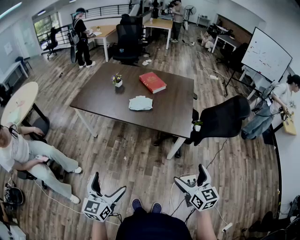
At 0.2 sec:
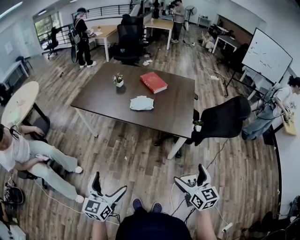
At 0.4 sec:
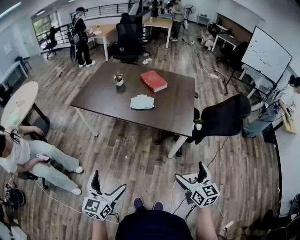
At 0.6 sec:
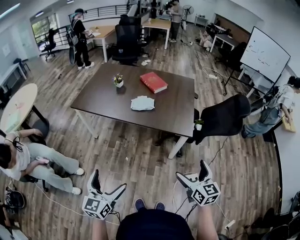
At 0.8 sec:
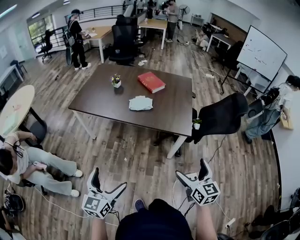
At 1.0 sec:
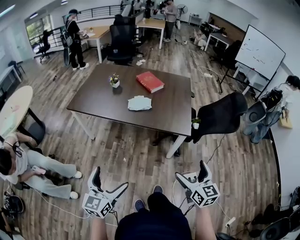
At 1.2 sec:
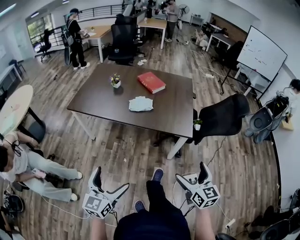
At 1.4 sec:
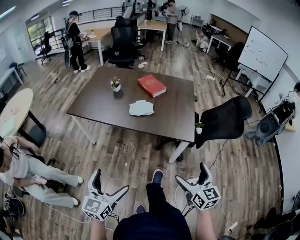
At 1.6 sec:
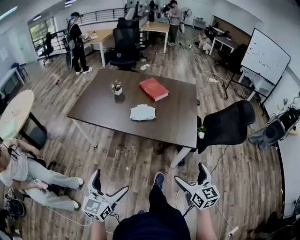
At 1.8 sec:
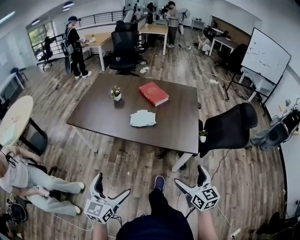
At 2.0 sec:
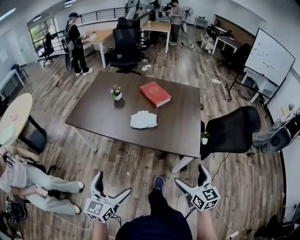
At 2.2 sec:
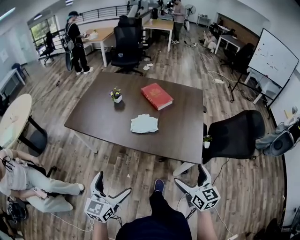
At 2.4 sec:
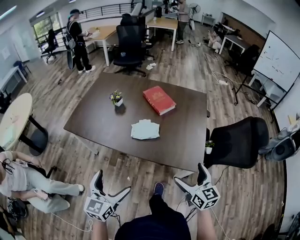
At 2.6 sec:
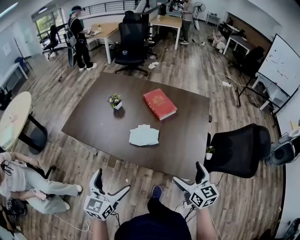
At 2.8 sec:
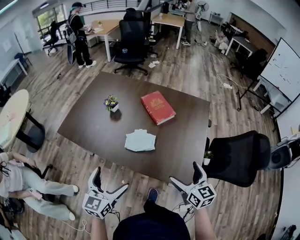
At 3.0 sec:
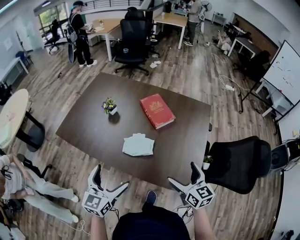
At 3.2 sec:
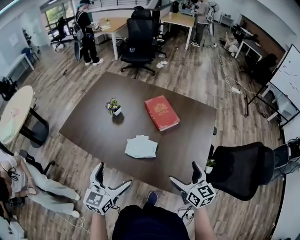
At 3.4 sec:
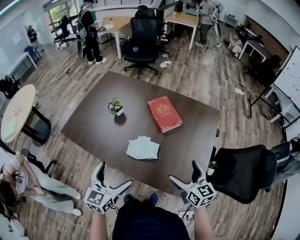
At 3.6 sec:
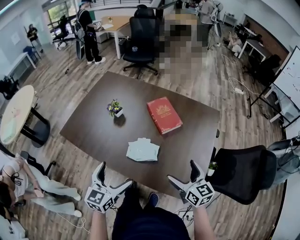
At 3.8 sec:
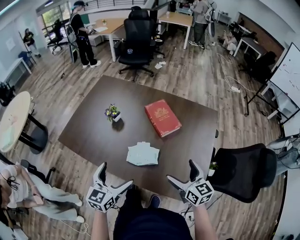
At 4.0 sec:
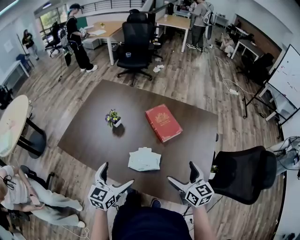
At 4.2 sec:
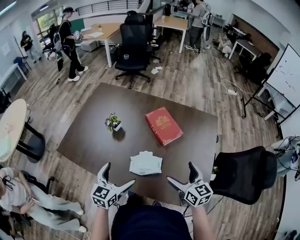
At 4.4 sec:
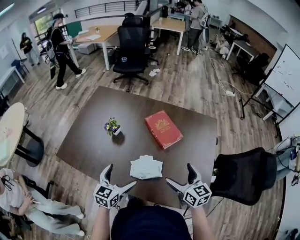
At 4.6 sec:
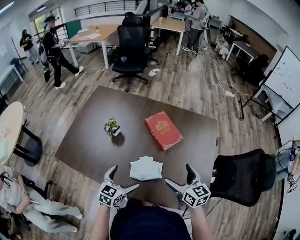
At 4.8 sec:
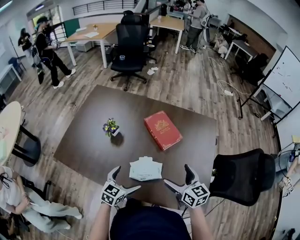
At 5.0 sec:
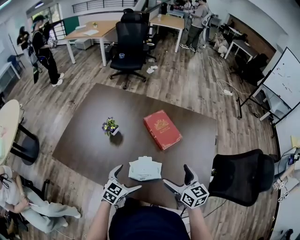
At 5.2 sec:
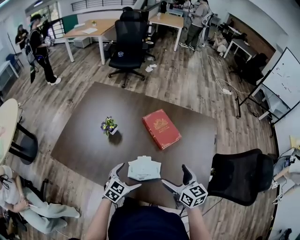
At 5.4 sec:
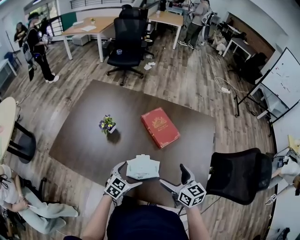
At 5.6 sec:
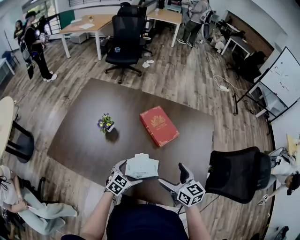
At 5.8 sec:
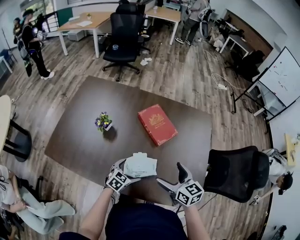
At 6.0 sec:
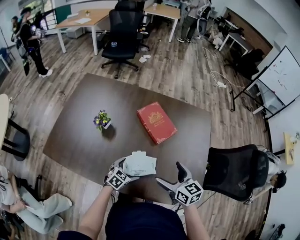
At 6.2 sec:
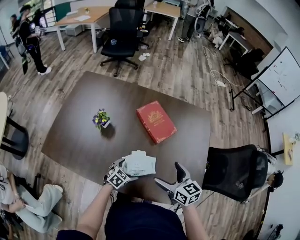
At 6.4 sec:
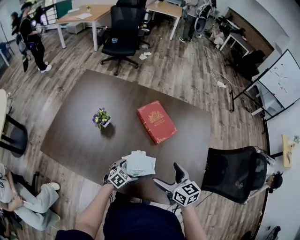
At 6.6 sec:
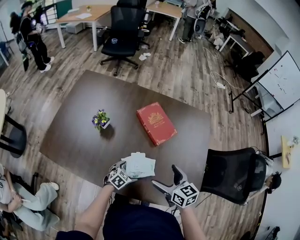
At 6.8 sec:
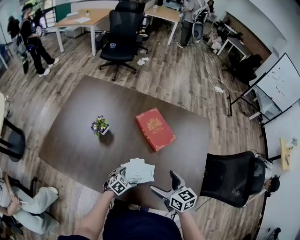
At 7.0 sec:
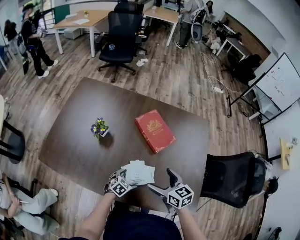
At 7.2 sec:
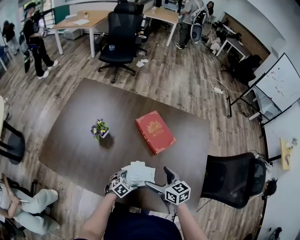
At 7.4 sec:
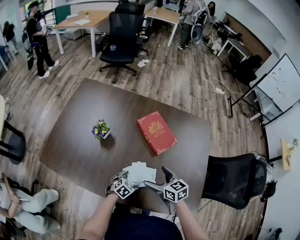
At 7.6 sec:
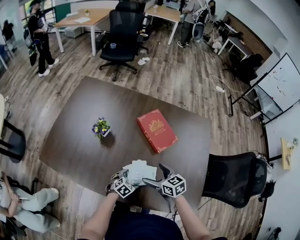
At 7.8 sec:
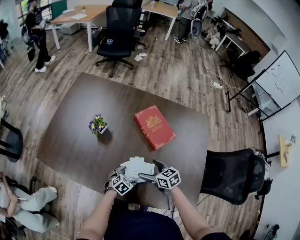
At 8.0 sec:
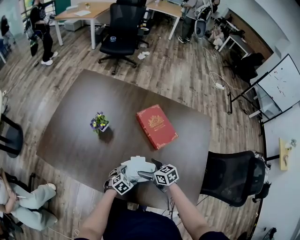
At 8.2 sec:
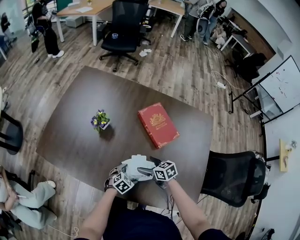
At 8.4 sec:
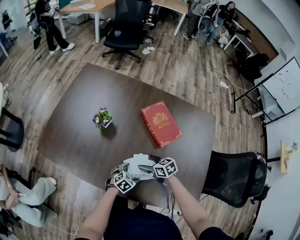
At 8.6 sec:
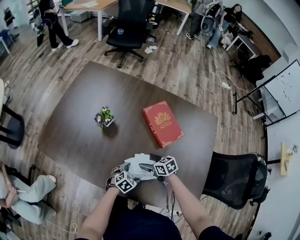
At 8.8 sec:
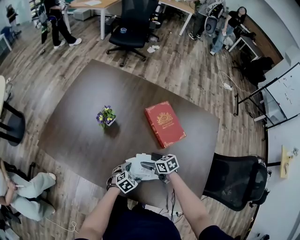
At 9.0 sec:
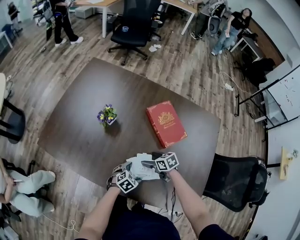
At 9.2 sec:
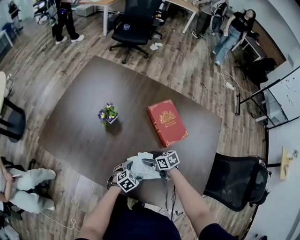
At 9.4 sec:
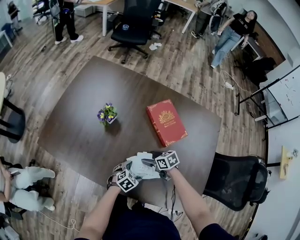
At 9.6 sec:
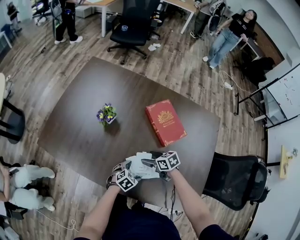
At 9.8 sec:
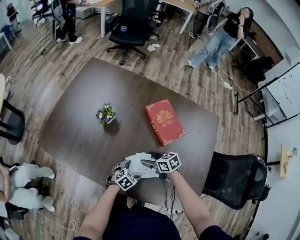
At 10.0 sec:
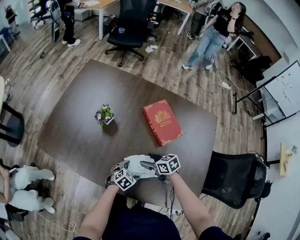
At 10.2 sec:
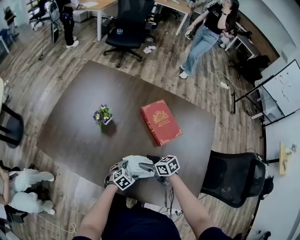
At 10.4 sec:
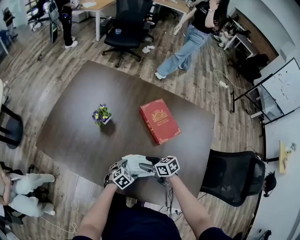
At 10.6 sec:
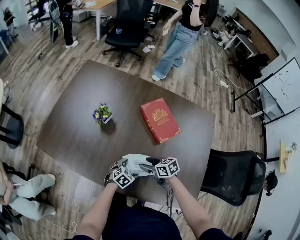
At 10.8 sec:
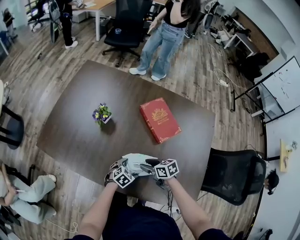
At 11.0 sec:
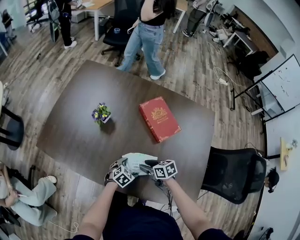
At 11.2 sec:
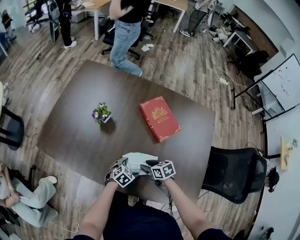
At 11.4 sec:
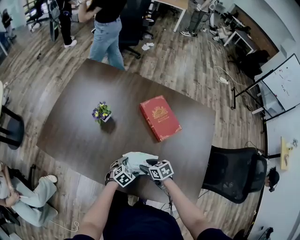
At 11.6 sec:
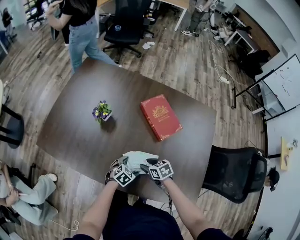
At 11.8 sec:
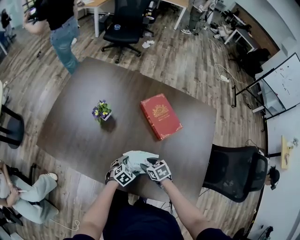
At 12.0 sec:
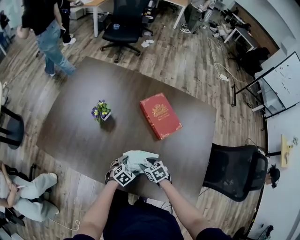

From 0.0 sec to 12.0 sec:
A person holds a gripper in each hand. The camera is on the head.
From 0.0 sec to 1.6 sec: The grippers both shift forward by roughly 10 cm.
From 1.6 sec to 3.0 sec: The two grippers go roughly 40 cm forward.
From 3.0 sec to 4.4 sec: The right gripper moves forward and to the left, some 15 cm. Meanwhile the left gripper shifts roughly 20 cm forward and downward.
From 4.4 sec to 6.0 sec: The right gripper moves about 5 cm. The left gripper shifts some 20 cm downward, and turns by some 30 degrees.
From 6.0 sec to 7.6 sec: The left gripper travels downward by approximately 10 cm, while the right gripper is displaced downward and to the left by about 15 cm.
From 7.6 sec to 9.0 sec: The right gripper heads downward, covering roughly 15 cm, and turns by roughly 20 degrees.
From 9.0 sec to 10.4 sec: The right gripper is displaced upward by roughly 5 cm.
From 10.4 sec to 12.0 sec: The right gripper is displaced downward by approximately 5 cm, and turns by some 20 degrees.

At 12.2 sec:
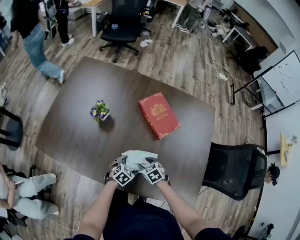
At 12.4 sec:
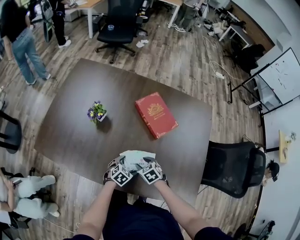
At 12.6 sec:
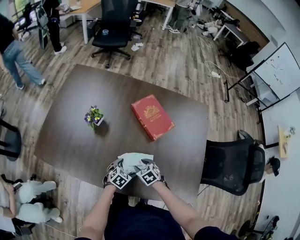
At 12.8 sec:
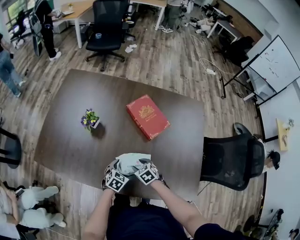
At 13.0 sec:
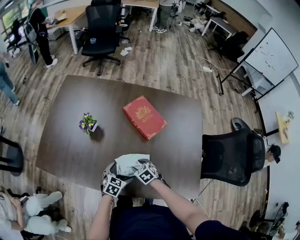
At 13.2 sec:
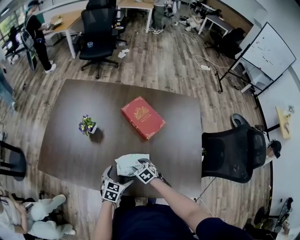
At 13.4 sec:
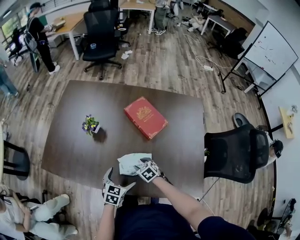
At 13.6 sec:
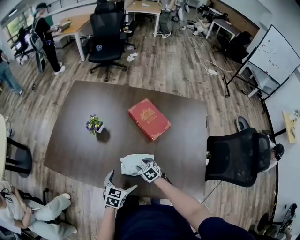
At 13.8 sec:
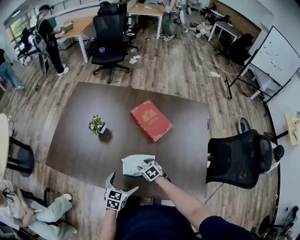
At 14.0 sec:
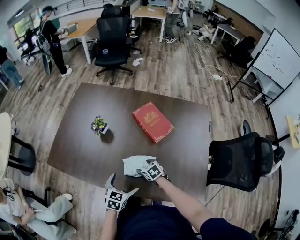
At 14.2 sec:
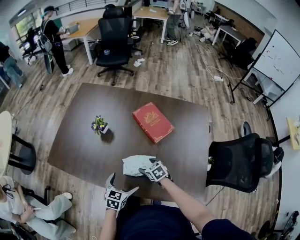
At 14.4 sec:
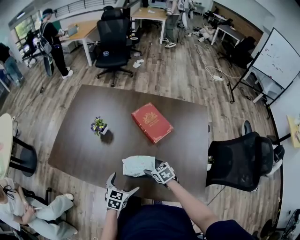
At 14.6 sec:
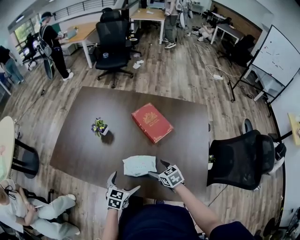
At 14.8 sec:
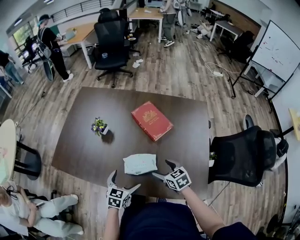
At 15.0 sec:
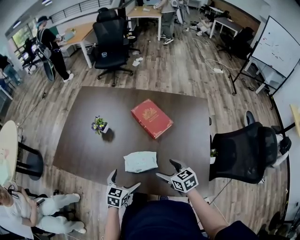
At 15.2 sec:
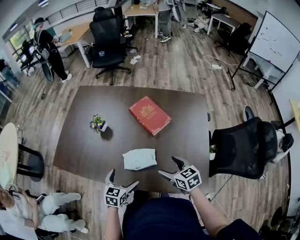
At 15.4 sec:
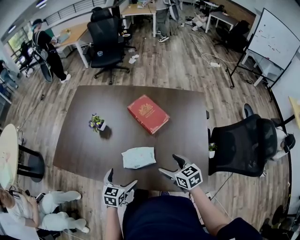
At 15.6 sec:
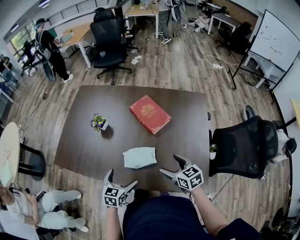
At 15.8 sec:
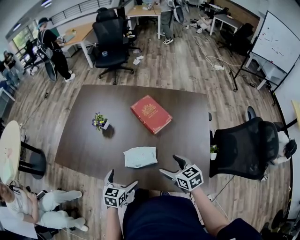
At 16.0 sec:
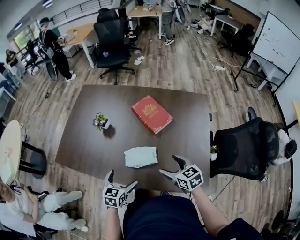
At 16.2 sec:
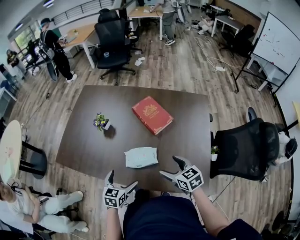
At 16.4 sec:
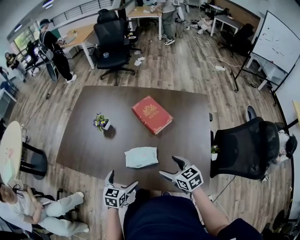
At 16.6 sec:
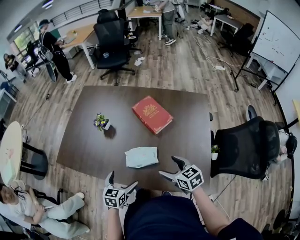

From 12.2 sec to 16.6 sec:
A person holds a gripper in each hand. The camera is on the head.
From 12.2 sec to 13.6 sec: The left gripper travels upward by about 15 cm, and rotates some 20 degrees.
From 13.6 sec to 15.2 sec: The left gripper moves approximately 5 cm; the right gripper heads upward, to the right and backward, covering approximately 25 cm, and rotates roughly 30 degrees.
From 15.2 sec to 16.6 sec: The grippers move only a little.

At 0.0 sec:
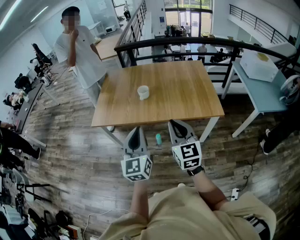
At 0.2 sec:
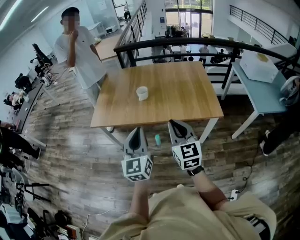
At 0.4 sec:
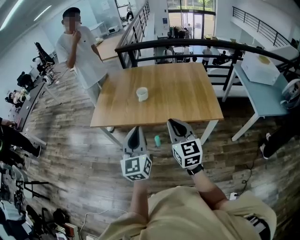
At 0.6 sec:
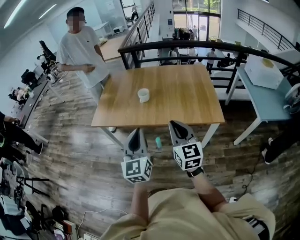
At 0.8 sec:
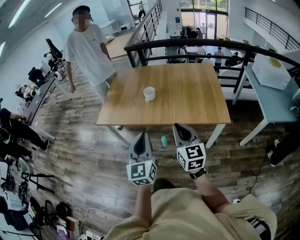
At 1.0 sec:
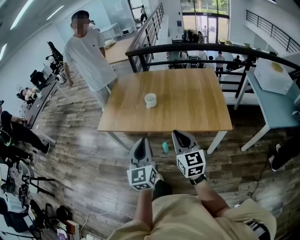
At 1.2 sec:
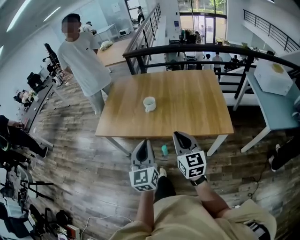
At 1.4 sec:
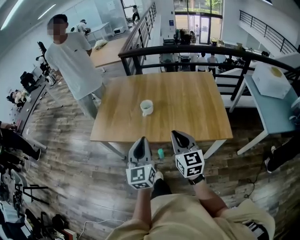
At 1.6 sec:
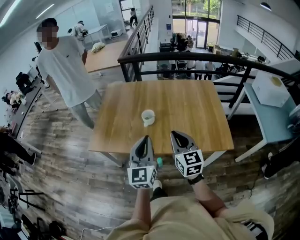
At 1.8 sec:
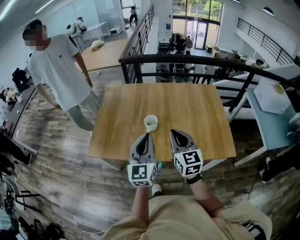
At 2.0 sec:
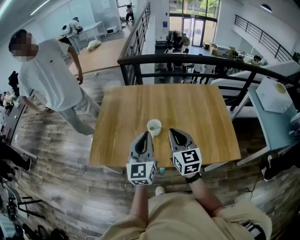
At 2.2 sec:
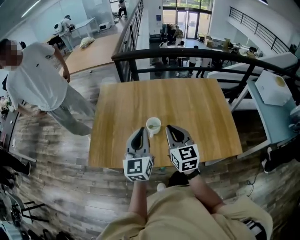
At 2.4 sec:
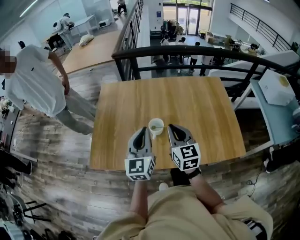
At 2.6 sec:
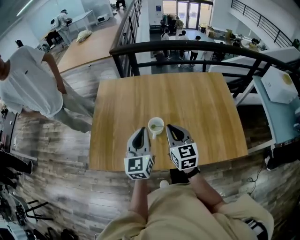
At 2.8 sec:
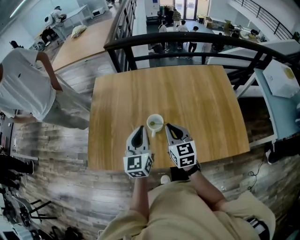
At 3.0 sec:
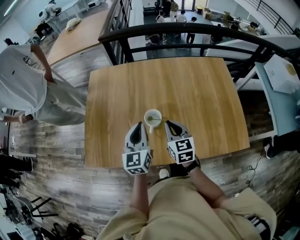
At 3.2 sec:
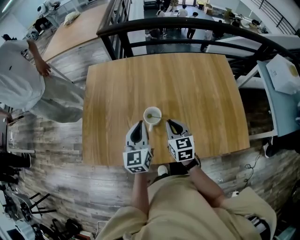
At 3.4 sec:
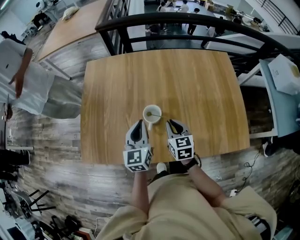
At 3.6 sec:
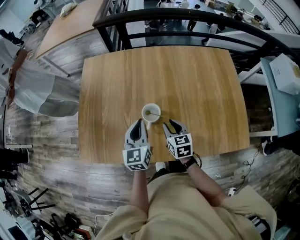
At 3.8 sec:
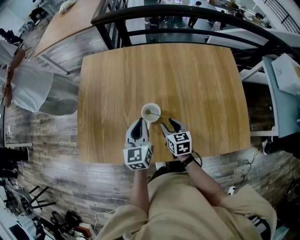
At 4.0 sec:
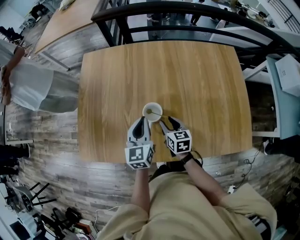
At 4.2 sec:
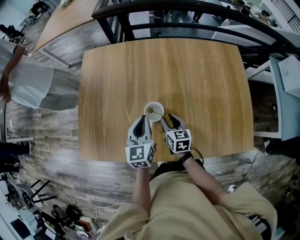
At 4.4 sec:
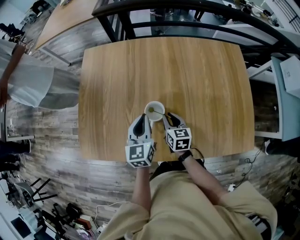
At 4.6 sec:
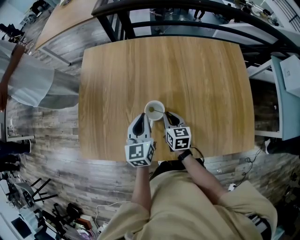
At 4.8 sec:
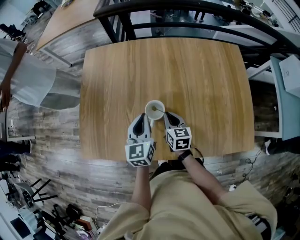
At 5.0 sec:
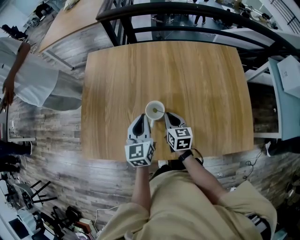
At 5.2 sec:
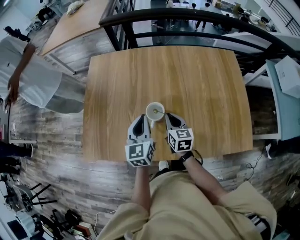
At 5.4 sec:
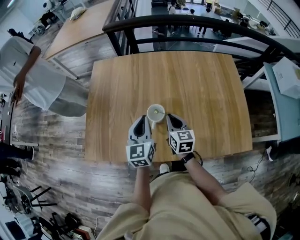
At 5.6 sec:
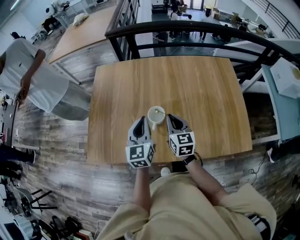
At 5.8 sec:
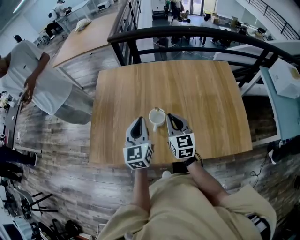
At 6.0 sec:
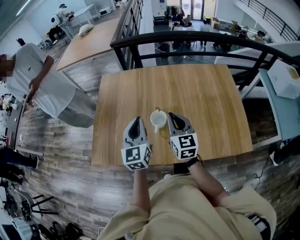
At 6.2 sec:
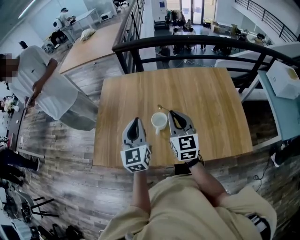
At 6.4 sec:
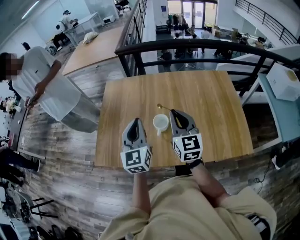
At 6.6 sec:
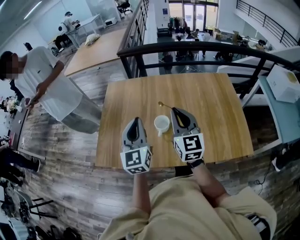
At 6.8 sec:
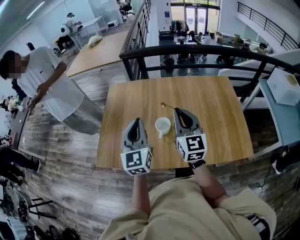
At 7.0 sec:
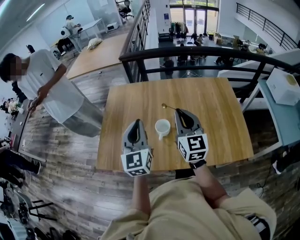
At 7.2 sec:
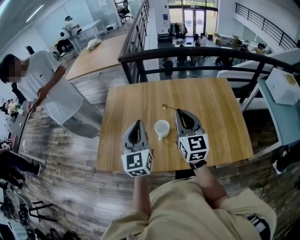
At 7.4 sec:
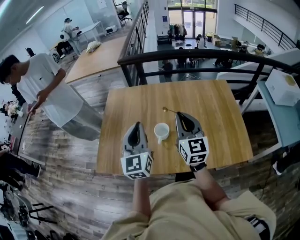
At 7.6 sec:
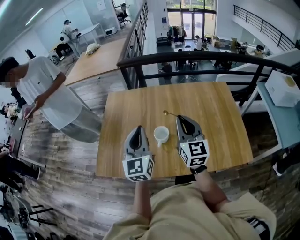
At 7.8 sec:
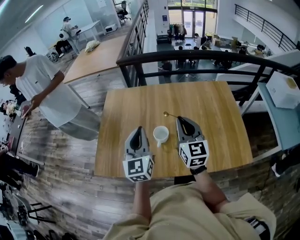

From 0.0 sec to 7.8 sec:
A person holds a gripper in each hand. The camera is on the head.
From 0.0 sec to 1.6 sec: The grippers both shift forward by about 25 cm.
From 1.6 sec to 3.2 sec: Both grippers travel together forward and downward, about 35 cm. The right gripper rotates roughly 20 degrees.
From 3.2 sec to 4.6 sec: The right gripper moves downward and forward, some 10 cm, and opens, then closes again. The left gripper heads downward, covering roughly 5 cm.
From 4.6 sec to 6.2 sec: The left gripper is displaced upward and backward by roughly 20 cm. The right gripper shifts about 25 cm upward, and rotates approximately 40 degrees.
From 6.2 sec to 7.8 sec: The right gripper moves approximately 5 cm.
